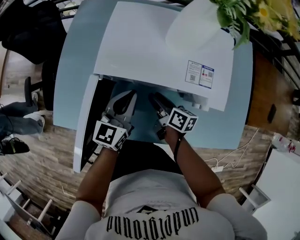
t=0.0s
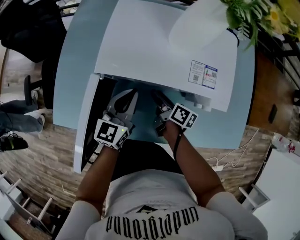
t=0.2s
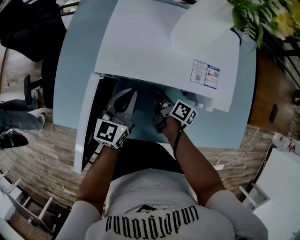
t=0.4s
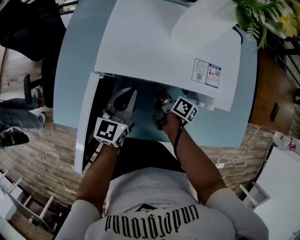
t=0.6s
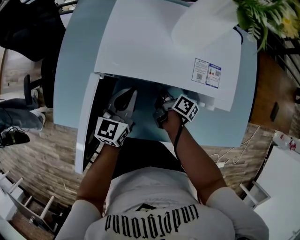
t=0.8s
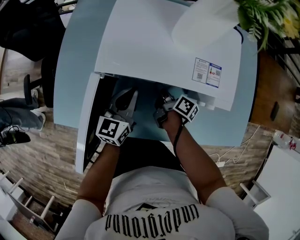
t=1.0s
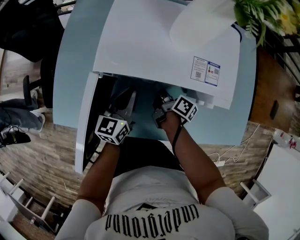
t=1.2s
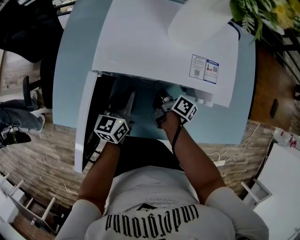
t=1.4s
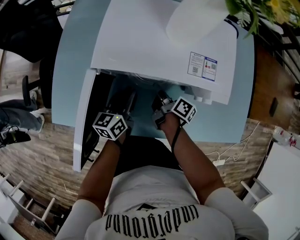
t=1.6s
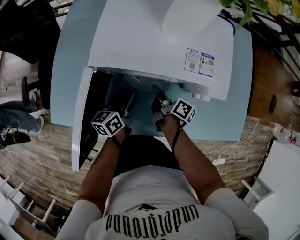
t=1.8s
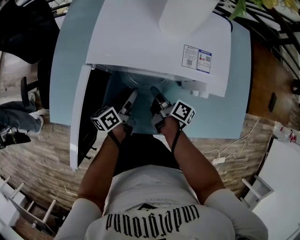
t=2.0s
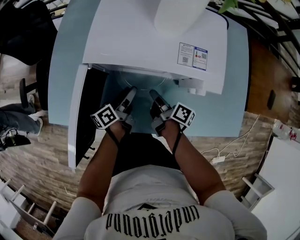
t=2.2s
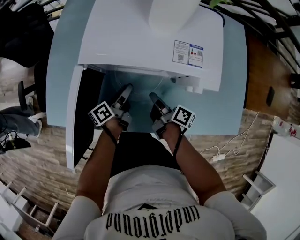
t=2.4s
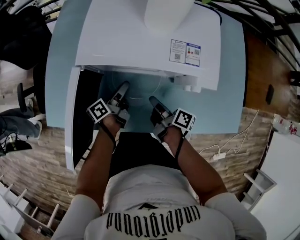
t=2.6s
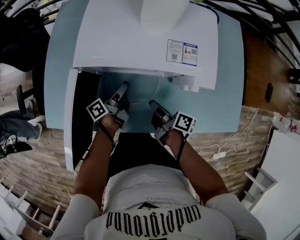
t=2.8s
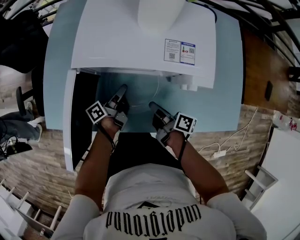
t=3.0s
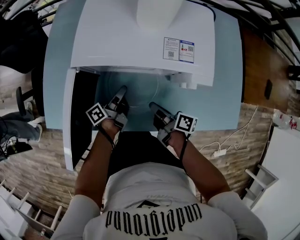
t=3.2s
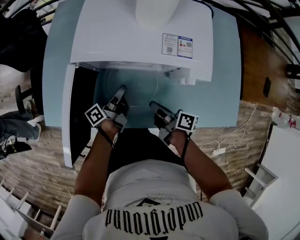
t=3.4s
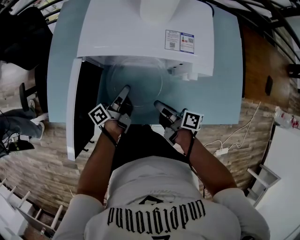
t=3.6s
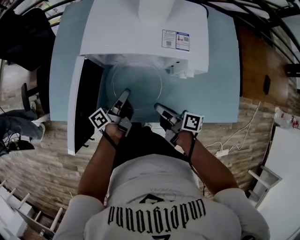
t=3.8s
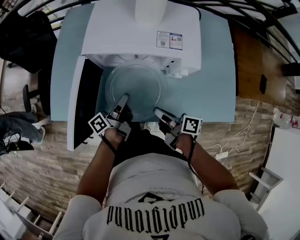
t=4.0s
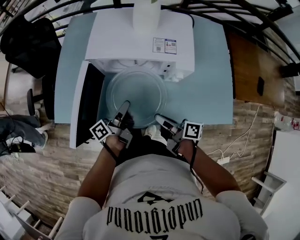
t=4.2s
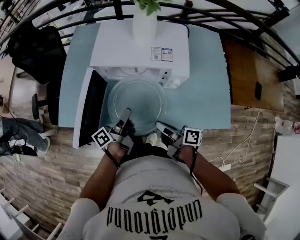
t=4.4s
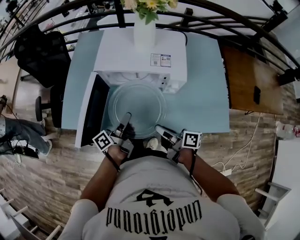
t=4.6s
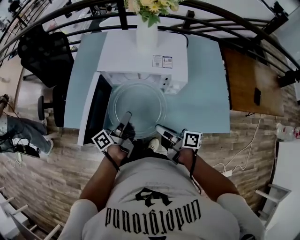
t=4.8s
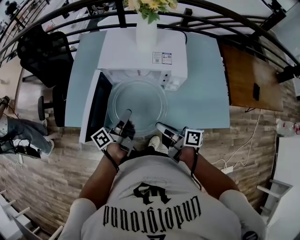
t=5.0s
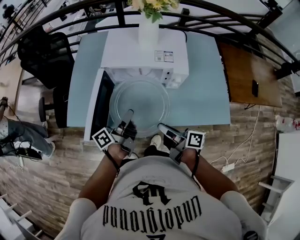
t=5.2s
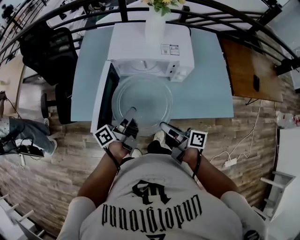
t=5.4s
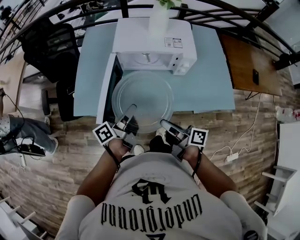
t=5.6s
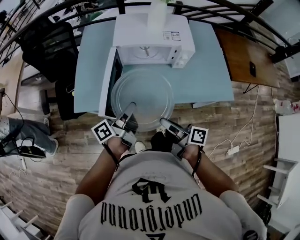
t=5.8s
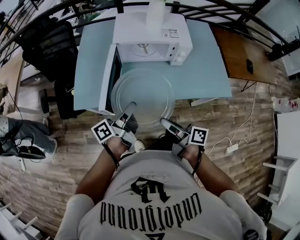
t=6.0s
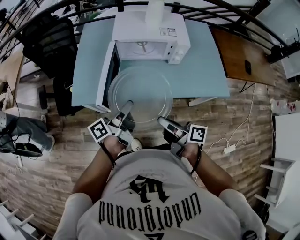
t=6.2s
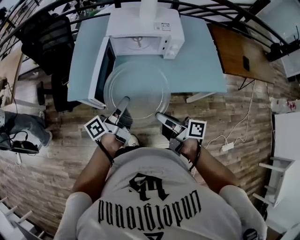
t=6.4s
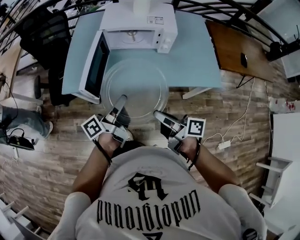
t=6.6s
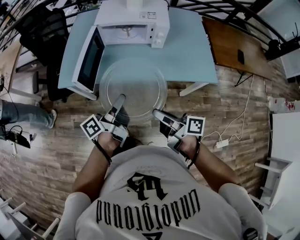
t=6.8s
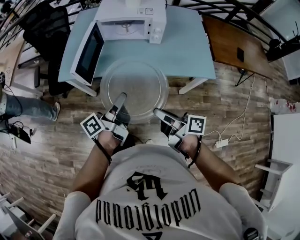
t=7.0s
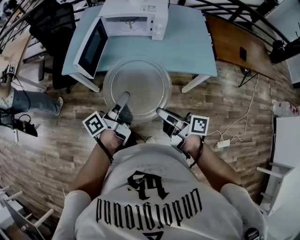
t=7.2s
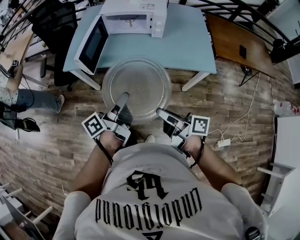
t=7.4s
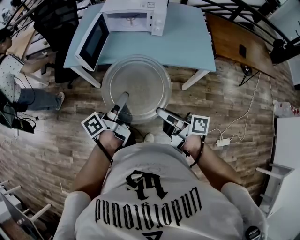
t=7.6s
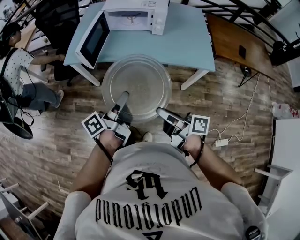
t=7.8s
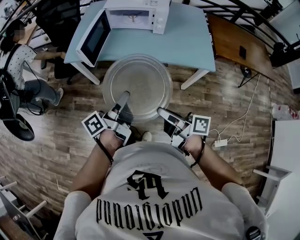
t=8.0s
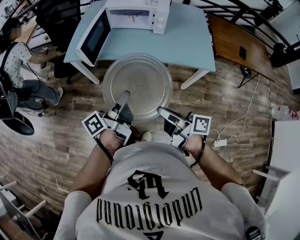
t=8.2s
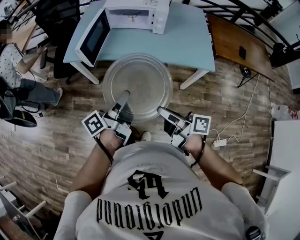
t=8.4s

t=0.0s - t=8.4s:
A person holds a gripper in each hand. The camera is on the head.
t=0.0s - t=1.4s: The right gripper swivels approximately 20 degrees, and closes up. Meanwhile the left gripper heads downward, covering approximately 5 cm.
t=1.4s - t=2.8s: The left gripper shifts some 5 cm downward, rotates around the line of its fingers by approximately 60 degrees, counterclockwise from behind, and opens up, while the right gripper travels backward by some 10 cm.
t=2.8s - t=4.2s: The grippers both shift backward and upward by roughly 15 cm. The left gripper closes.
t=4.2s - t=5.6s: The right gripper moves backward, upward and to the left, roughly 15 cm; the left gripper heads upward, backward and to the left, covering approximately 15 cm.
t=5.6s - t=7.0s: The left gripper goes approximately 20 cm backward. Meanwhile the right gripper heads backward and to the right, covering roughly 25 cm.
t=7.0s - t=8.4s: Both grippers travel together backward, some 10 cm.

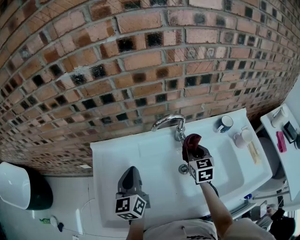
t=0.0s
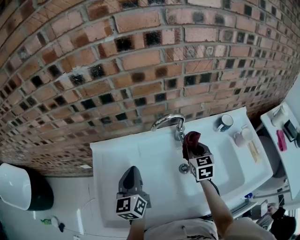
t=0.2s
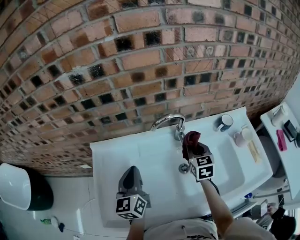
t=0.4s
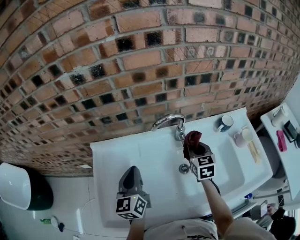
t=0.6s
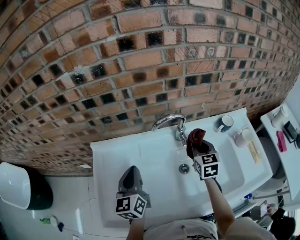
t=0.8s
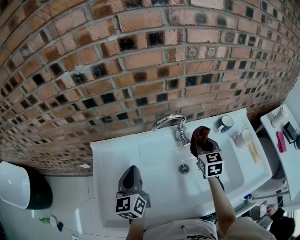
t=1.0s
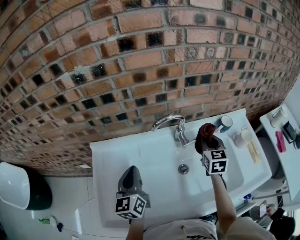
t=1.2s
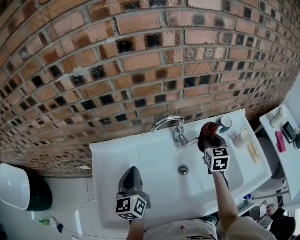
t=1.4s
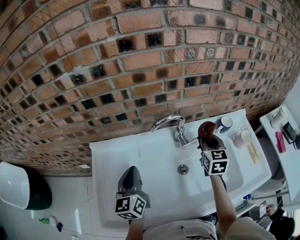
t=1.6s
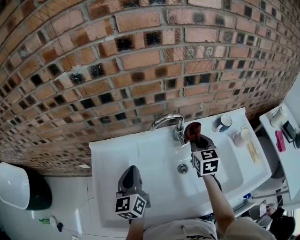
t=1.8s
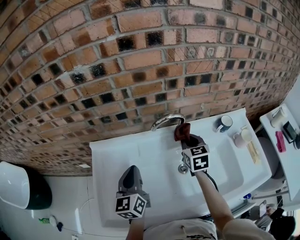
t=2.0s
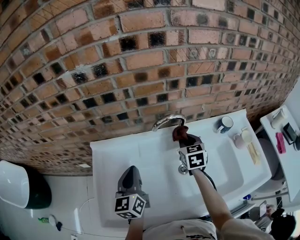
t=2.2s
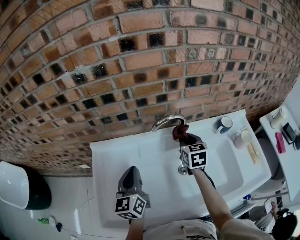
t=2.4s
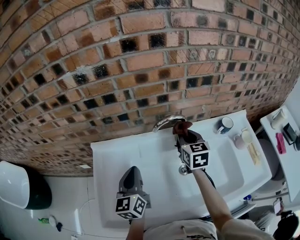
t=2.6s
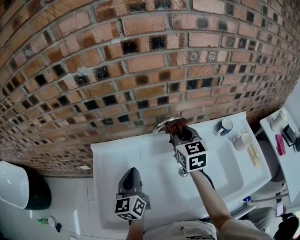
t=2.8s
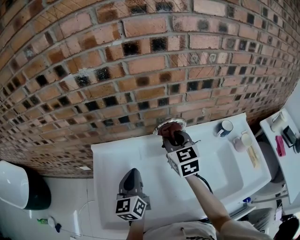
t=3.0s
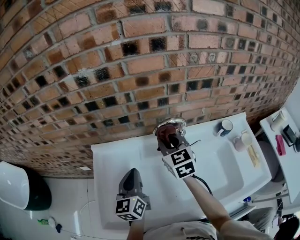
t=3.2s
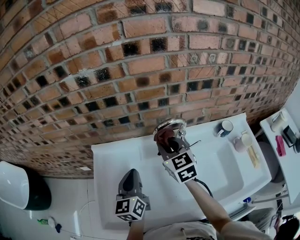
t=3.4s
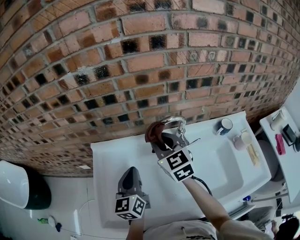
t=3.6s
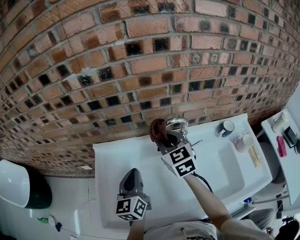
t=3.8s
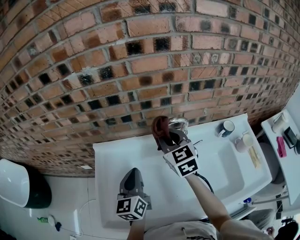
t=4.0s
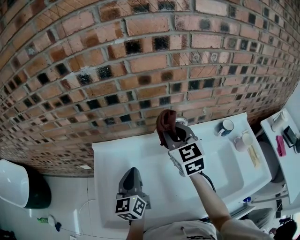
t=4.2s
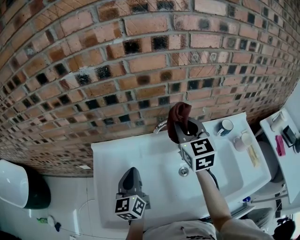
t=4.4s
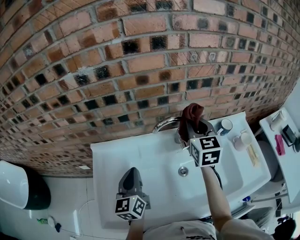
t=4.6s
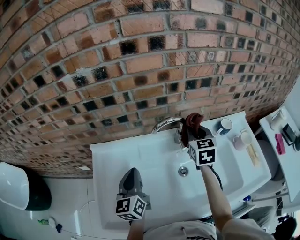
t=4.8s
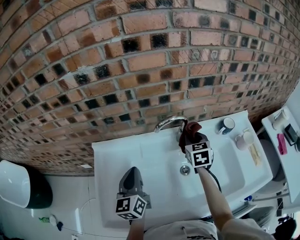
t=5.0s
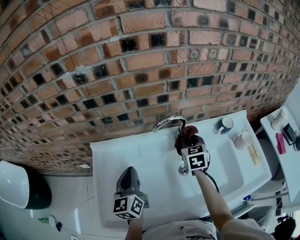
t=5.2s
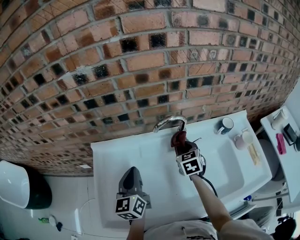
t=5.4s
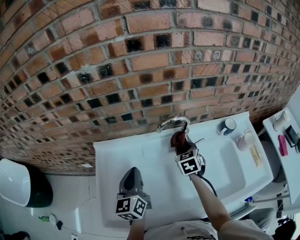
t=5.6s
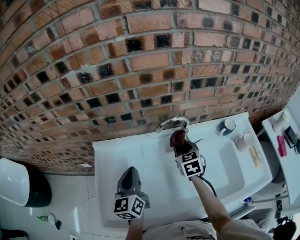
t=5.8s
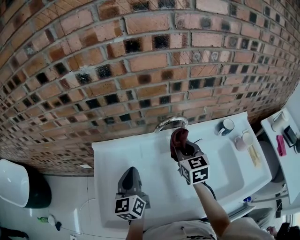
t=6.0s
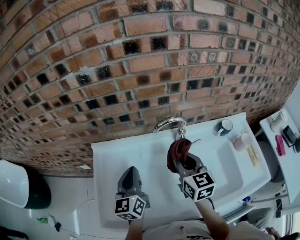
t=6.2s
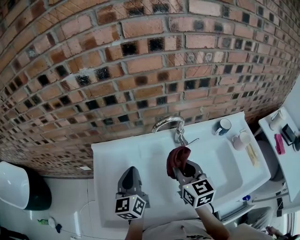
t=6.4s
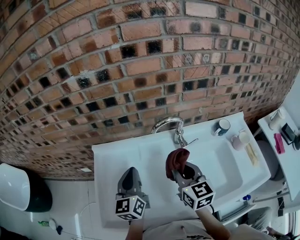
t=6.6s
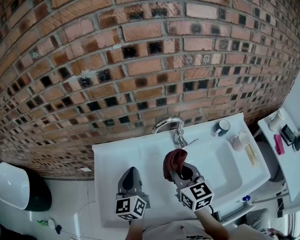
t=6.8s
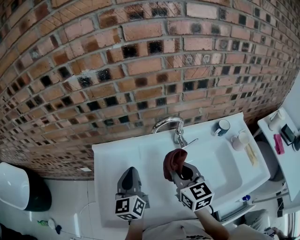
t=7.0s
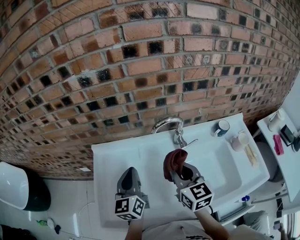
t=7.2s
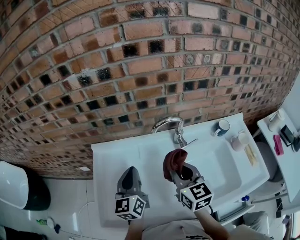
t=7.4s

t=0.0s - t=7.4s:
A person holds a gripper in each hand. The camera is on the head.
t=0.0s - t=1.4s: The right gripper goes about 10 cm to the right.
t=1.4s - t=3.0s: The right gripper heads to the left and upward, covering roughly 20 cm, and rotates some 20 degrees.
t=3.0s - t=4.4s: The right gripper moves upward, roughly 5 cm.
t=4.4s - t=6.0s: The right gripper travels downward by approximately 10 cm.
t=6.0s - t=7.4s: The right gripper is displaced backward by about 10 cm.

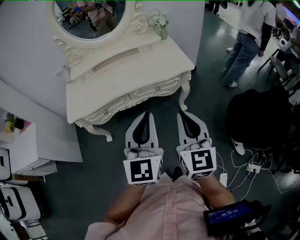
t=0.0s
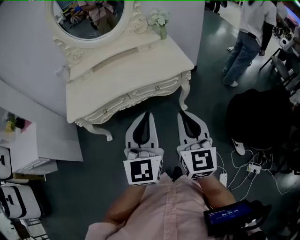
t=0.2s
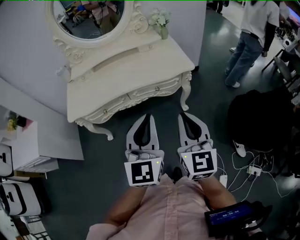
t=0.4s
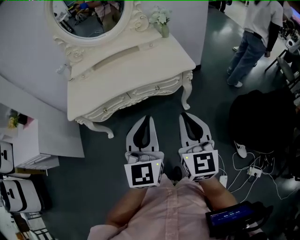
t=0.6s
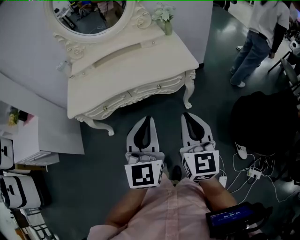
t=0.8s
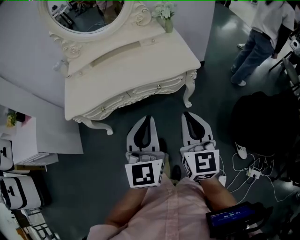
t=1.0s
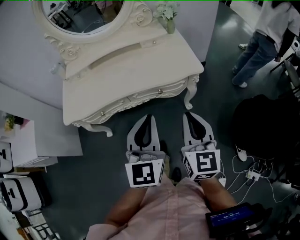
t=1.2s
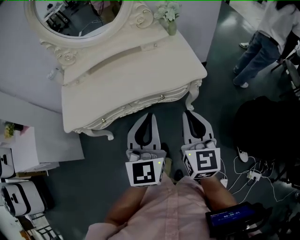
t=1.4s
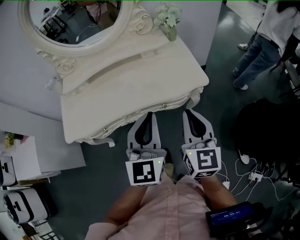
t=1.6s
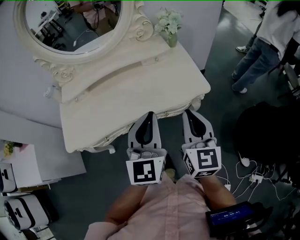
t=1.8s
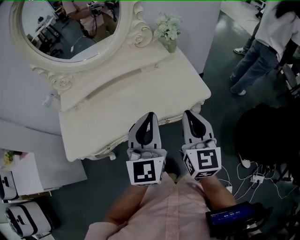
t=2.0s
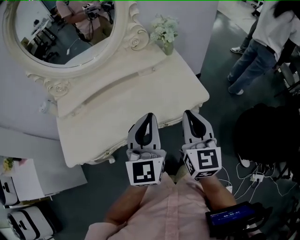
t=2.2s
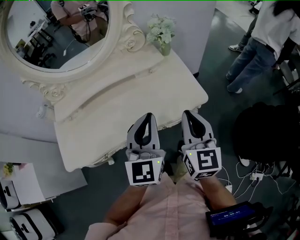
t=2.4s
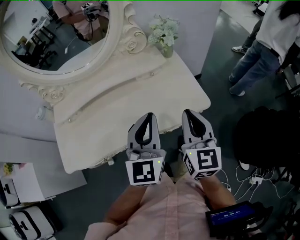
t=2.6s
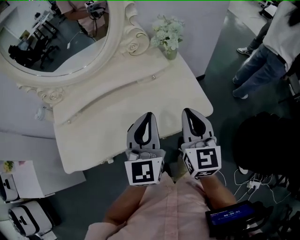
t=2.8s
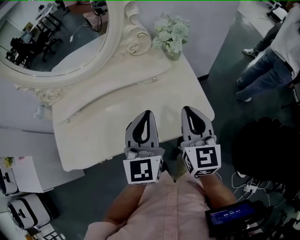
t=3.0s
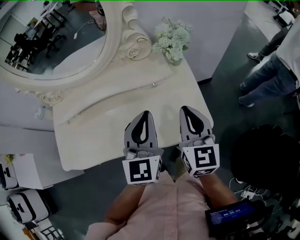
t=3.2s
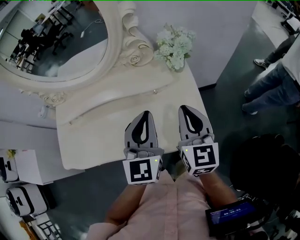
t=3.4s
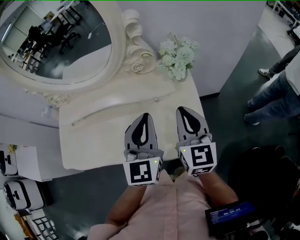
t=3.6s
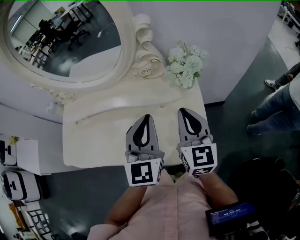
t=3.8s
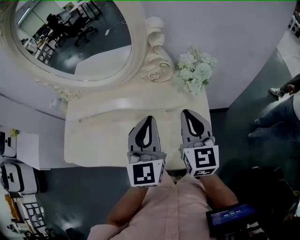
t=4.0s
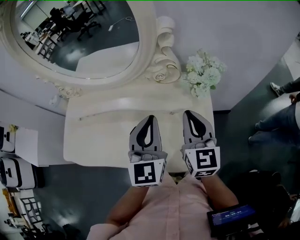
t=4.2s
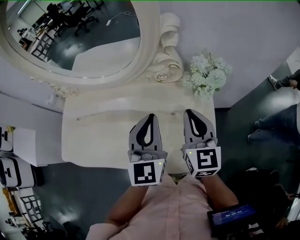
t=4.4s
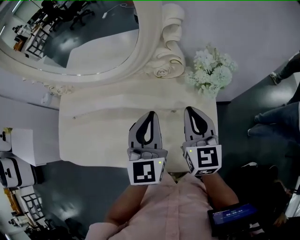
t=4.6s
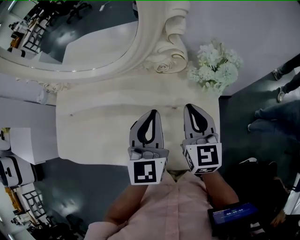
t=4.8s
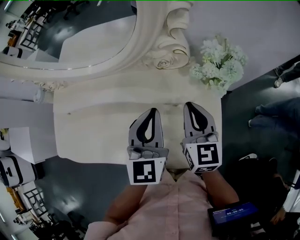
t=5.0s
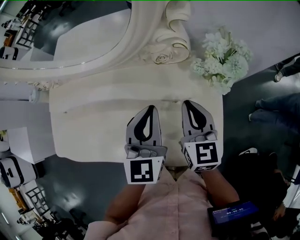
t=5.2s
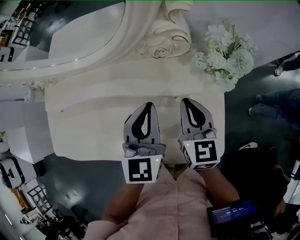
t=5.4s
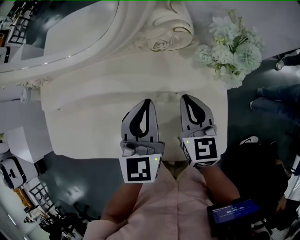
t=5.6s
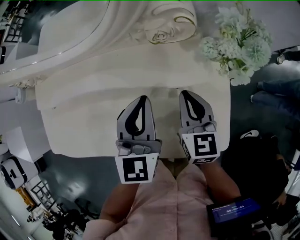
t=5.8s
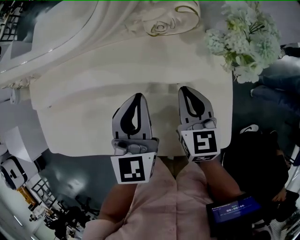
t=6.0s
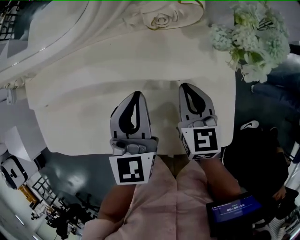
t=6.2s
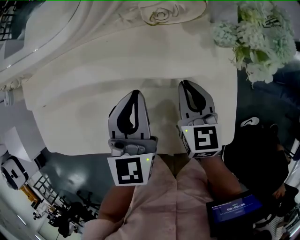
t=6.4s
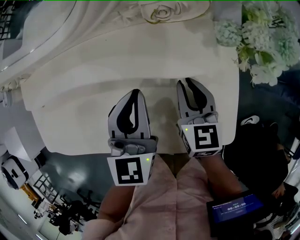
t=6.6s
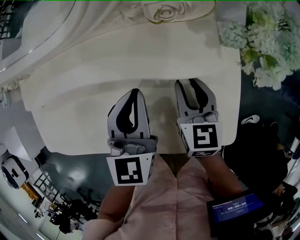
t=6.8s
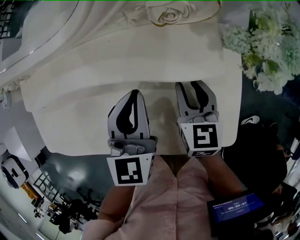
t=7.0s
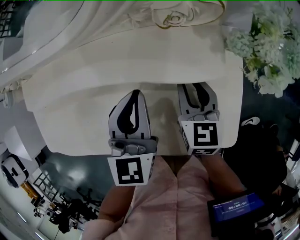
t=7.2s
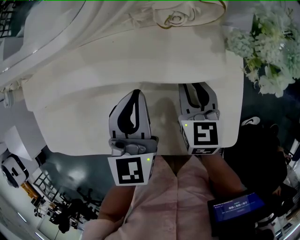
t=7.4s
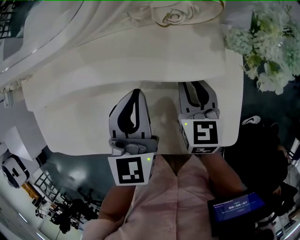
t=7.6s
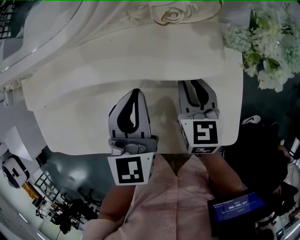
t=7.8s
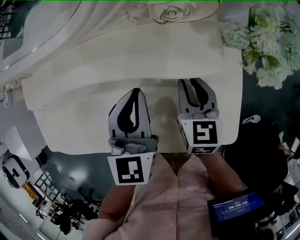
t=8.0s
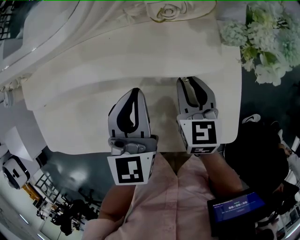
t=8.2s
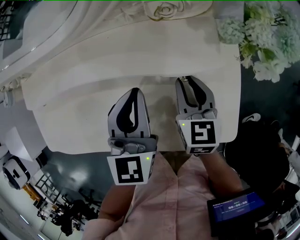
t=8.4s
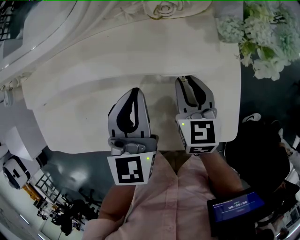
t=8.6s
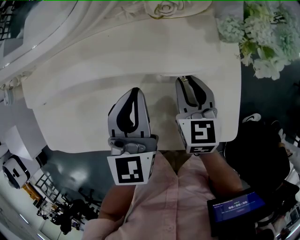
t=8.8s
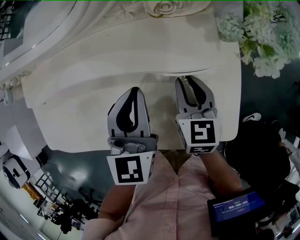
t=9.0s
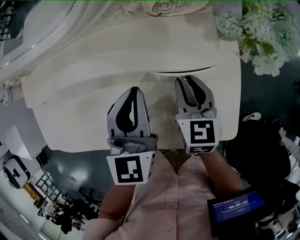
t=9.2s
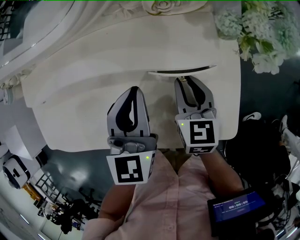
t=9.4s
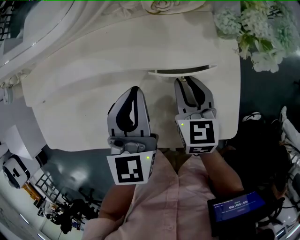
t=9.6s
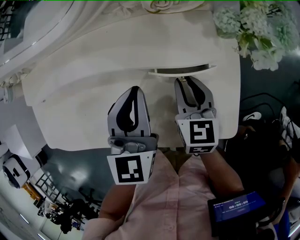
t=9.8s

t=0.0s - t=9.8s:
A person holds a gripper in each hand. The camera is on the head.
t=0.0s - t=1.4s: The two grippers go roughly 15 cm forward.
t=1.4s - t=2.8s: Both grippers travel together forward, some 25 cm.
t=2.8s - t=4.2s: Both grippers move forward, roughly 20 cm. The right gripper turns by roughly 20 degrees, while the left gripper changes its angle by roughly 20 degrees.
t=4.2s - t=5.6s: The left gripper shifts about 10 cm downward and forward; the right gripper moves downward, roughly 15 cm.
t=5.6s - t=7.0s: The two grippers go roughly 5 cm downward. The right gripper opens.
t=7.0s - t=8.4s: Neither gripper changes place.
t=8.4s - t=9.8s: There are only small adjustments of the grippers.
